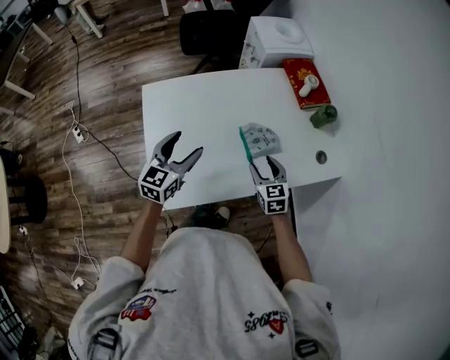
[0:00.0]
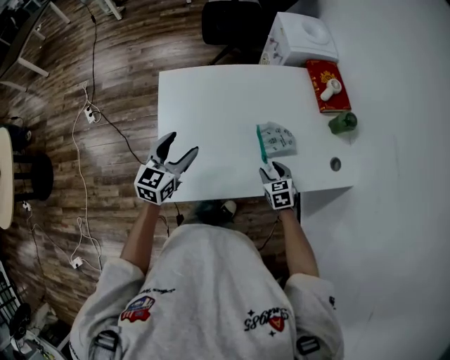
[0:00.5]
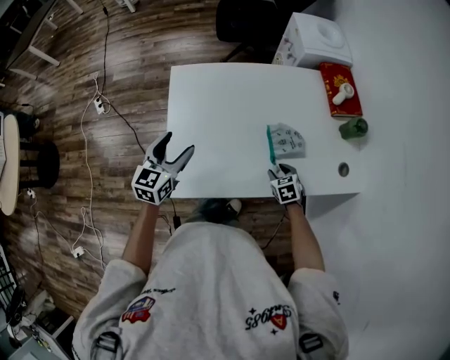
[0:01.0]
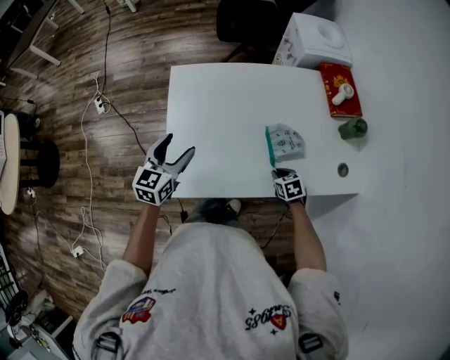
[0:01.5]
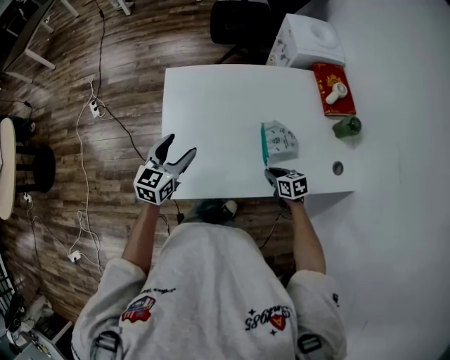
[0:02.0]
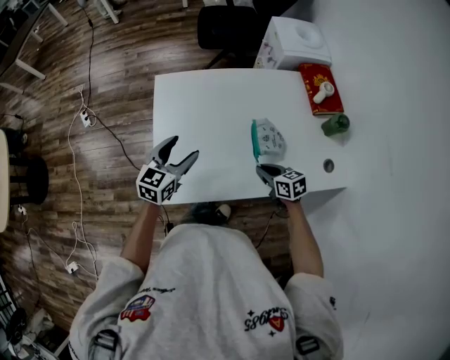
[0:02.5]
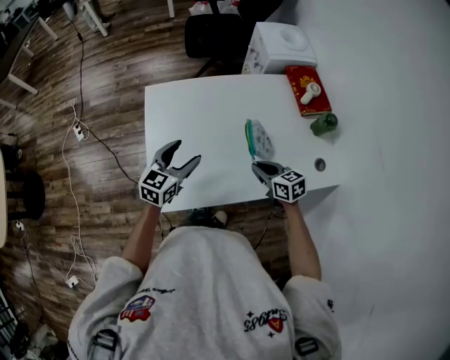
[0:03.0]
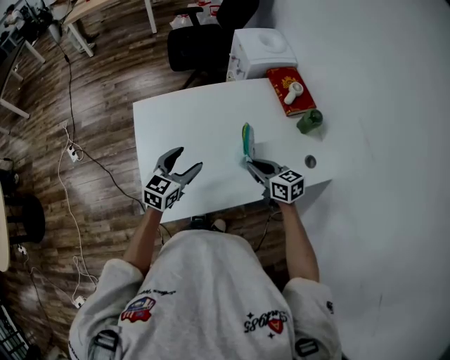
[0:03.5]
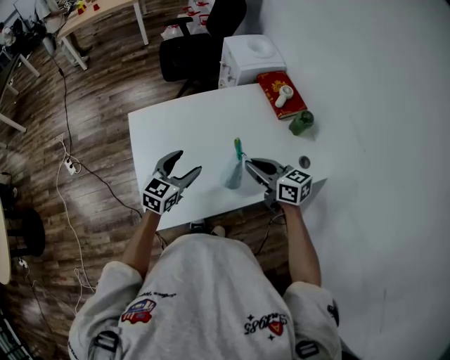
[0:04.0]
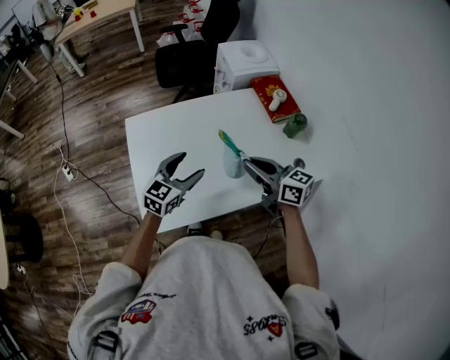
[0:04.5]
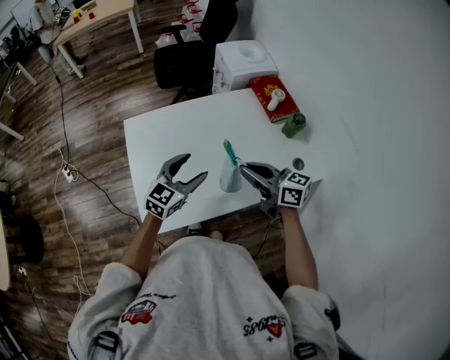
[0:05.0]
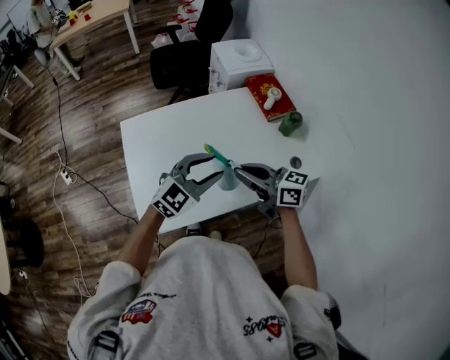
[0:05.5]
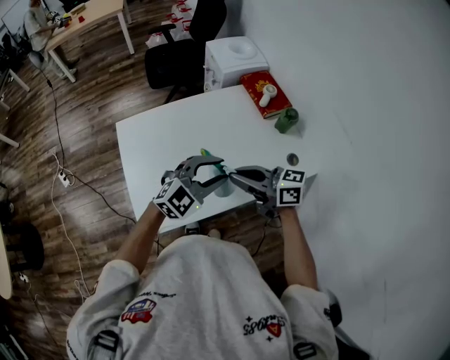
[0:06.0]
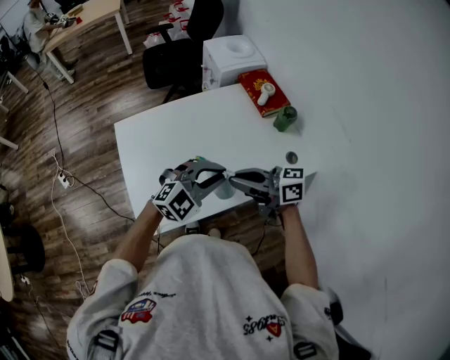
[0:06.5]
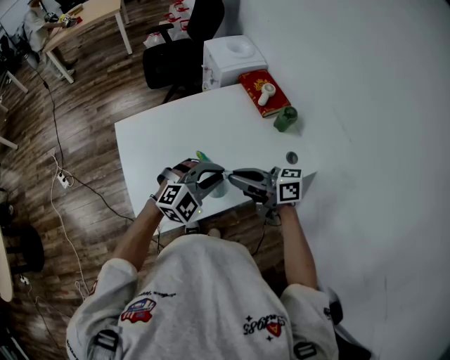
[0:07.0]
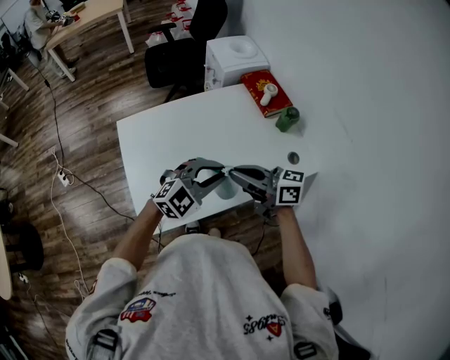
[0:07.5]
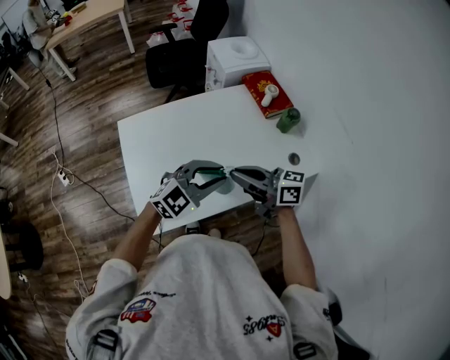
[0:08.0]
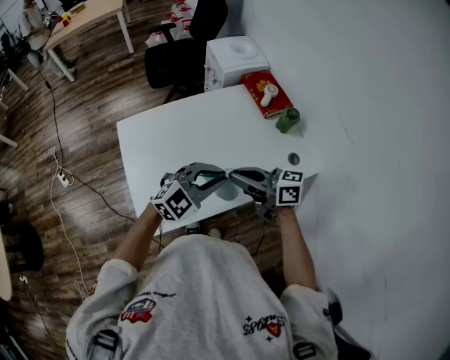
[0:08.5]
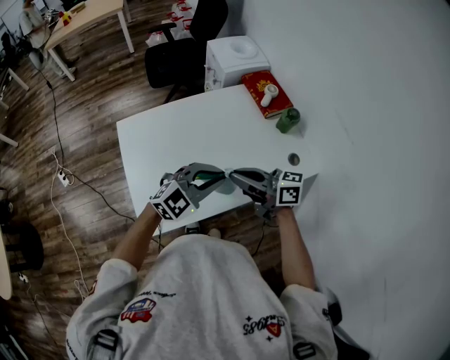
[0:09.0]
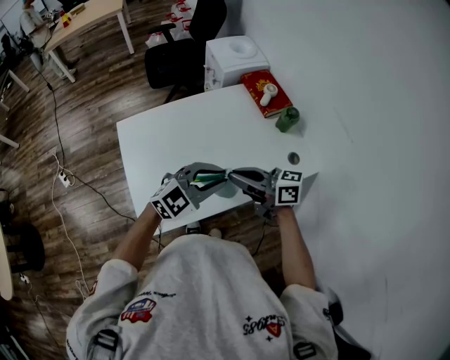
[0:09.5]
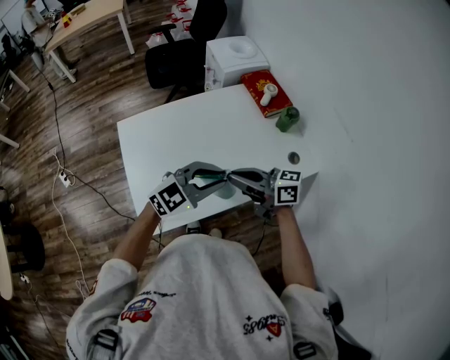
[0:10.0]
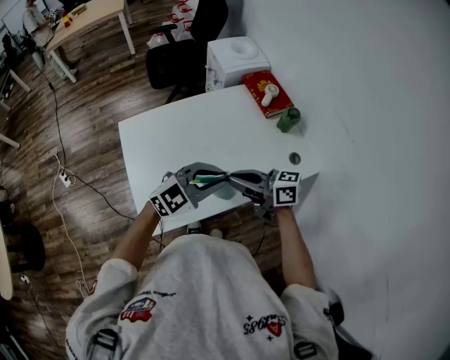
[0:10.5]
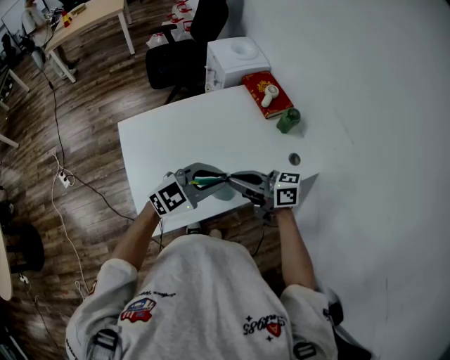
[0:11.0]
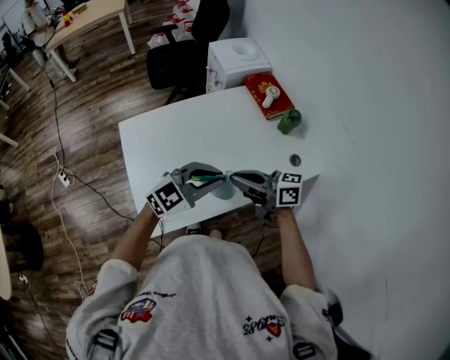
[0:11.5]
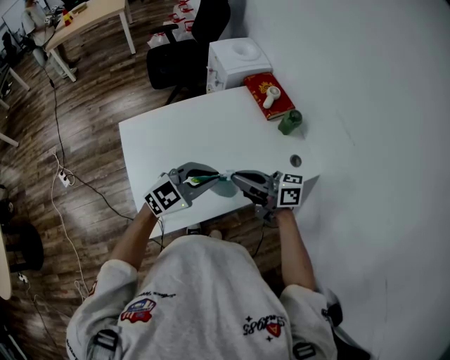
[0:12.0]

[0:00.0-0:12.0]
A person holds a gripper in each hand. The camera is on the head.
0:00.0 to 0:02.0: The left gripper ends up approximately 10 cm from where it was. Meanwhile the right gripper goes about 10 cm downward, rotates about 40 degrees, and closes its fingers.
0:02.0 to 0:04.0: The left gripper travels to the right by approximately 15 cm, and swivels approximately 20 degrees. The right gripper goes roughly 25 cm upward, and tips its fingers upward by roughly 30 degrees.
0:04.0 to 0:06.0: The left gripper shifts by about 20 cm, rotates some 40 degrees, and closes its fingers; the right gripper shifts roughly 5 cm upward, and turns by about 20 degrees.
0:06.0 to 0:12.0: The grippers move only a little.

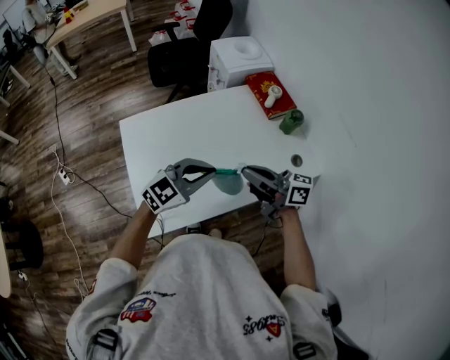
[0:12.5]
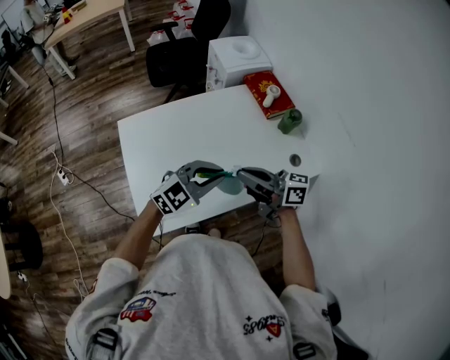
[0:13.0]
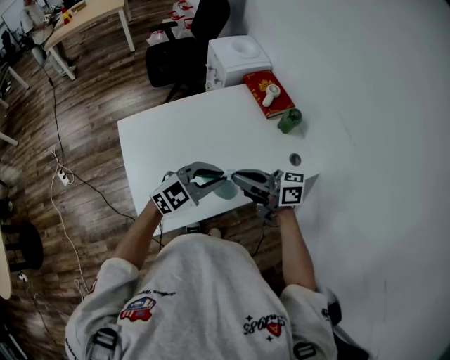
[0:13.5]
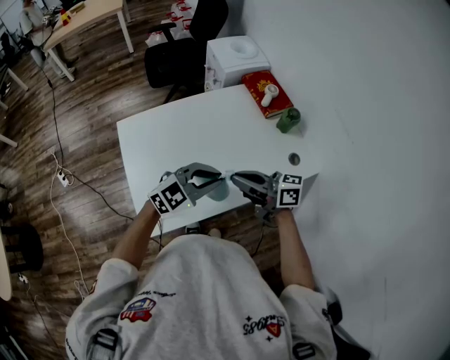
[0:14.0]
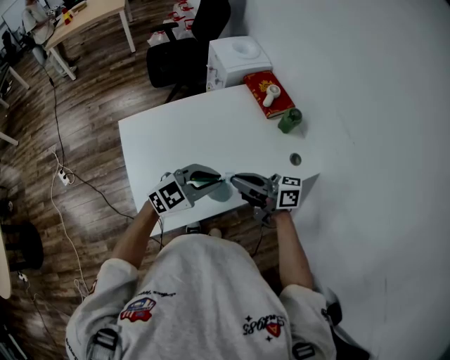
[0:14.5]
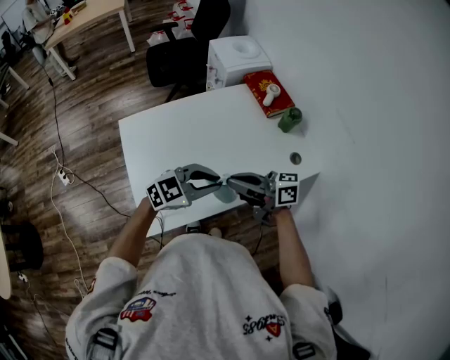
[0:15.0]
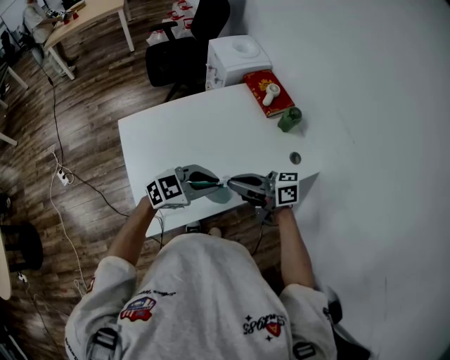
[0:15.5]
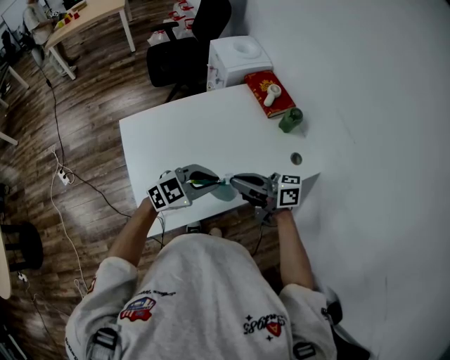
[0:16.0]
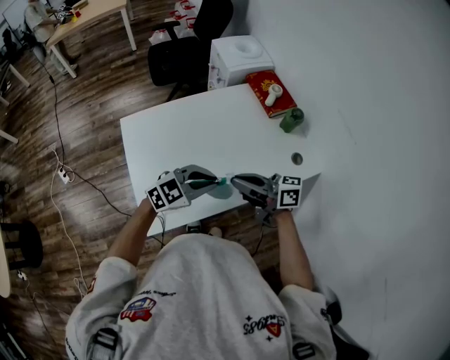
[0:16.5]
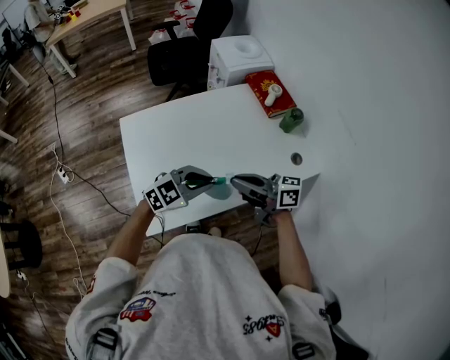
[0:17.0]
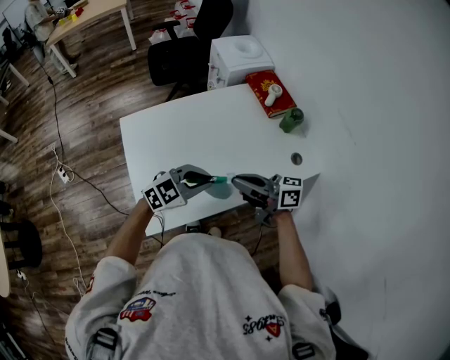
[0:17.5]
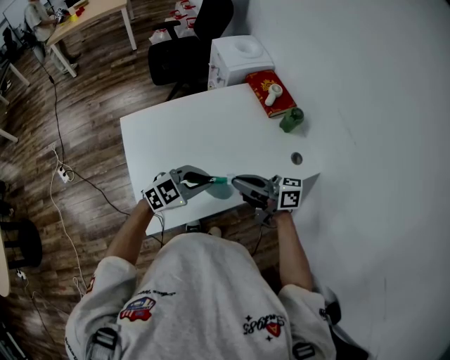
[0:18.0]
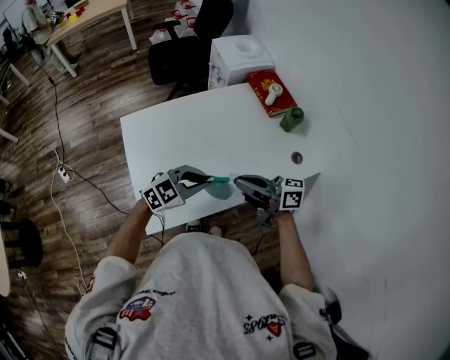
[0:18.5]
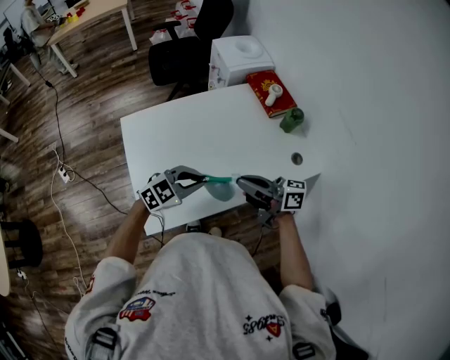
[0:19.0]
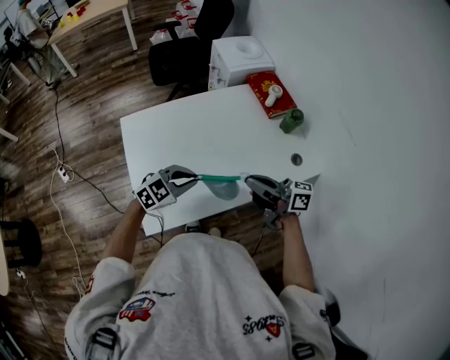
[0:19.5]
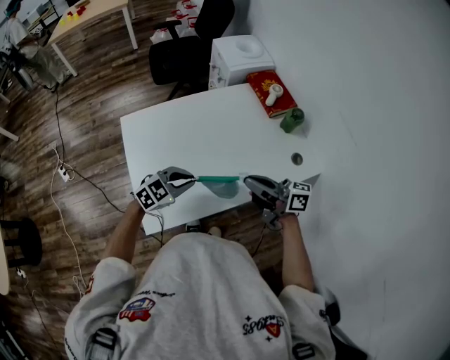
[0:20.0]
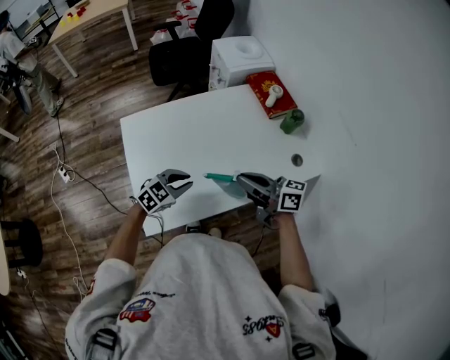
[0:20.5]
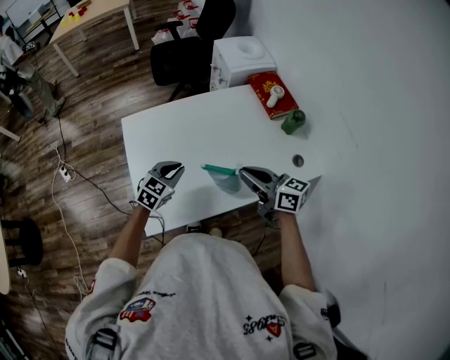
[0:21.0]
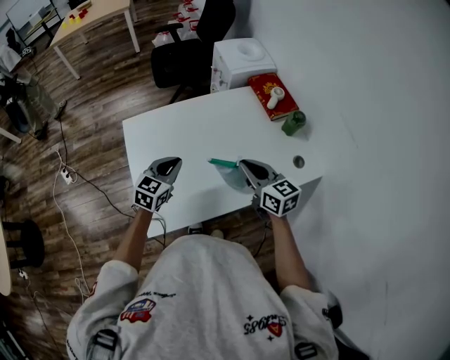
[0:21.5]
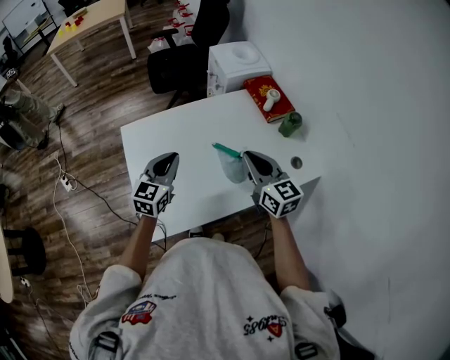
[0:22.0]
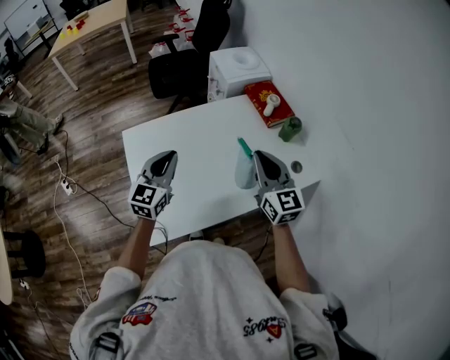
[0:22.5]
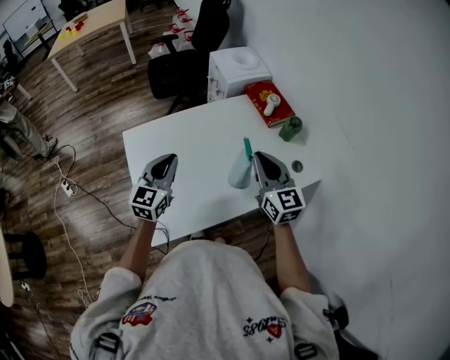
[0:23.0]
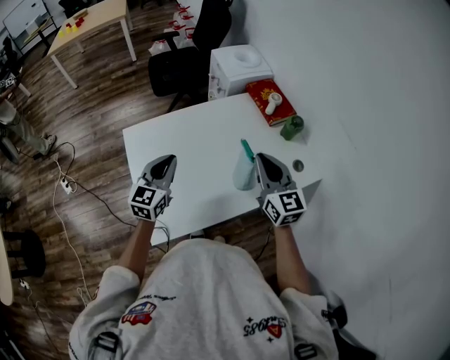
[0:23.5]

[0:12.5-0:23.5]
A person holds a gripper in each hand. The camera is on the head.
0:12.5 to 0:16.0: The grippers stay close to where they were, moving slightly.
0:16.0 to 0:18.0: The grippers move only a little.
0:18.0 to 0:20.0: The left gripper changes place by about 10 cm.
0:20.0 to 0:21.5: The left gripper ends up approximately 10 cm from where it was, and rotates about 40 degrees. The right gripper changes place by some 5 cm, and turns by about 40 degrees.
0:21.5 to 0:23.5: Both grippers travel together upward, about 10 cm. The right gripper swivels approximately 30 degrees.

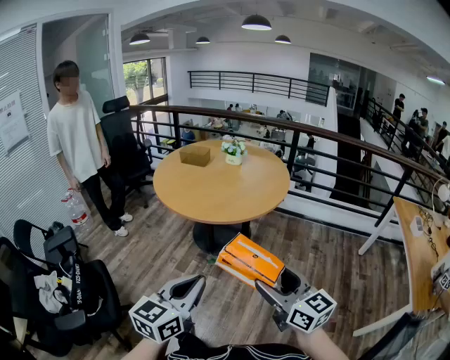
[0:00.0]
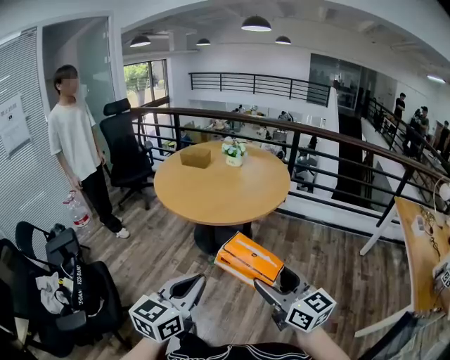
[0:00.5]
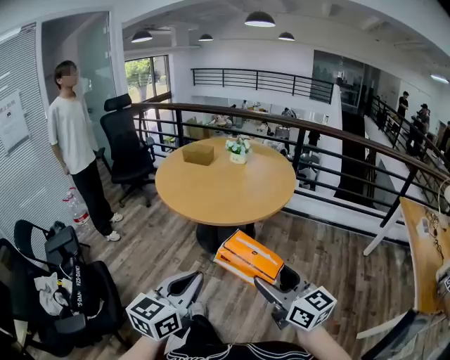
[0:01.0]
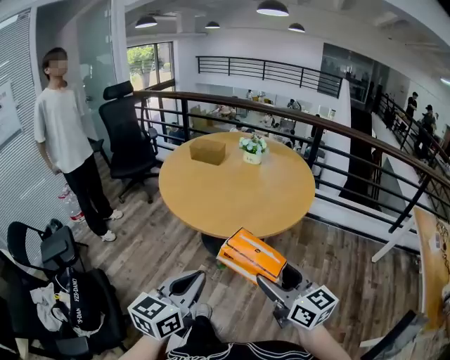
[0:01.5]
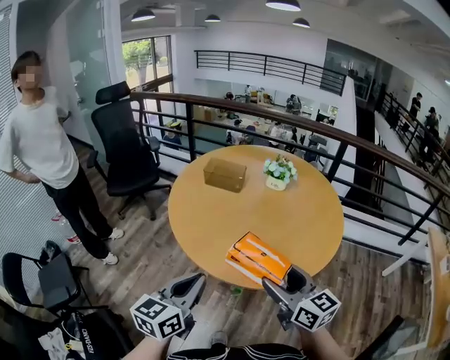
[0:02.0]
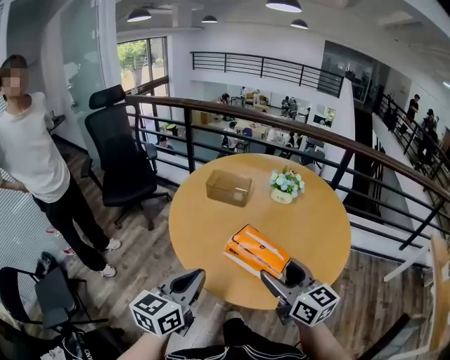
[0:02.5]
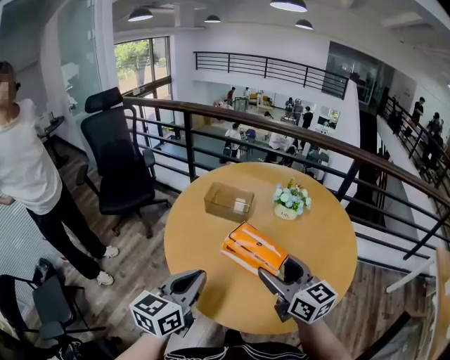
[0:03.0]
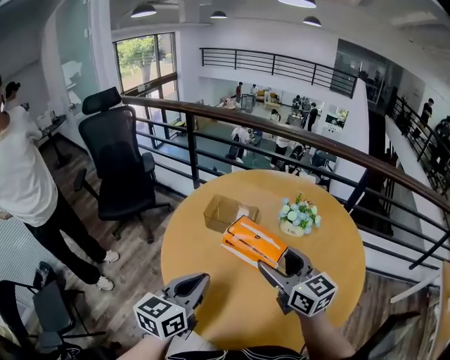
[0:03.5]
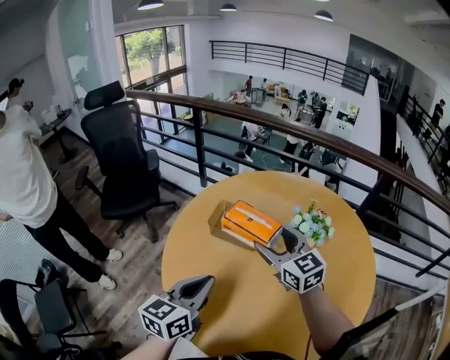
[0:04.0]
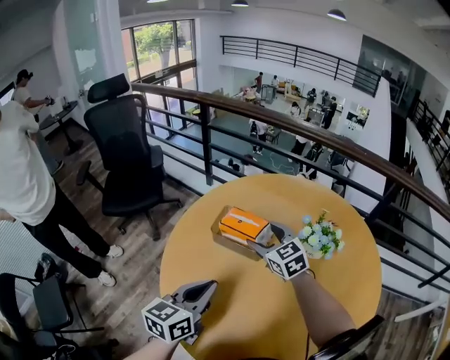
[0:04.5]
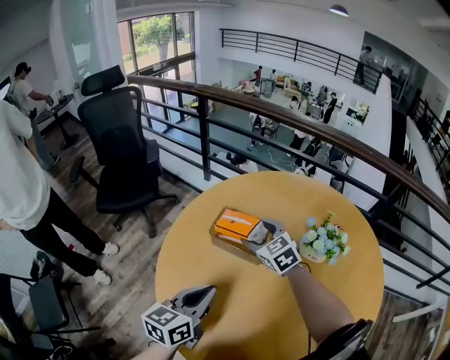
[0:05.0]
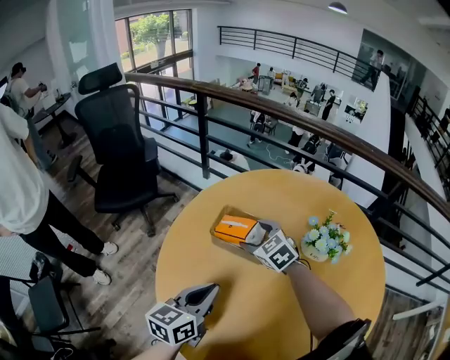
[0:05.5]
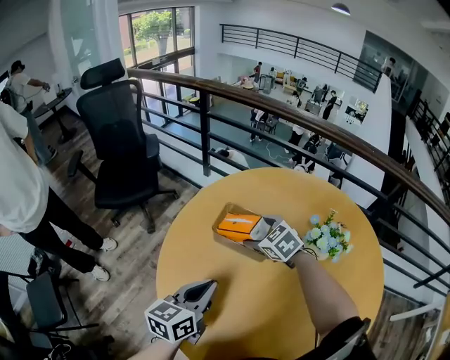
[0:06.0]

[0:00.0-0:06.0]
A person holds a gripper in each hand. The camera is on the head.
0:00.0 to 0:02.0: Both grippers travel together forward and to the left, approximately 30 cm.
0:02.0 to 0:04.0: Both grippers travel together forward, about 30 cm. The right gripper changes its angle by roughly 20 degrees.
0:04.0 to 0:06.0: The right gripper heads downward and forward, covering some 20 cm, and tips its fingers downward by some 30 degrees; the left gripper travels downward by some 5 cm.
